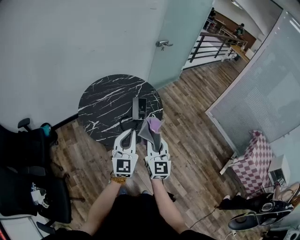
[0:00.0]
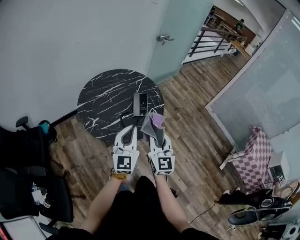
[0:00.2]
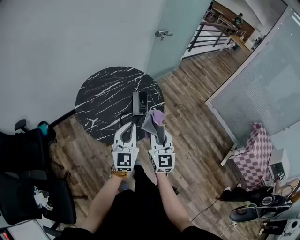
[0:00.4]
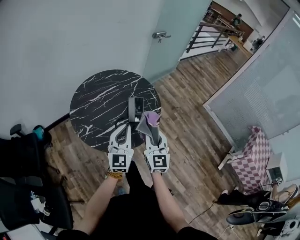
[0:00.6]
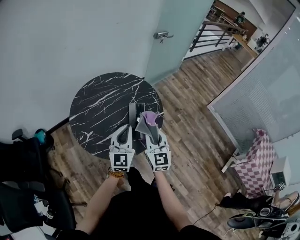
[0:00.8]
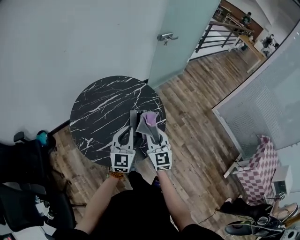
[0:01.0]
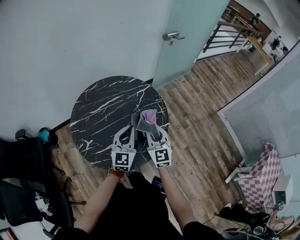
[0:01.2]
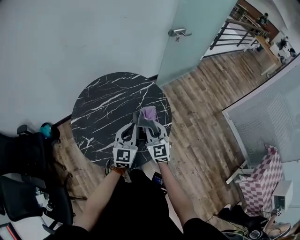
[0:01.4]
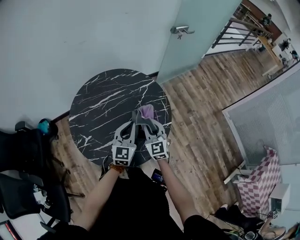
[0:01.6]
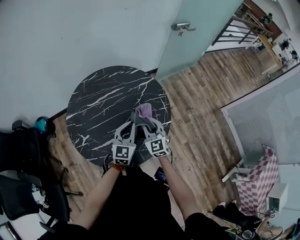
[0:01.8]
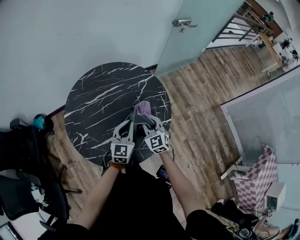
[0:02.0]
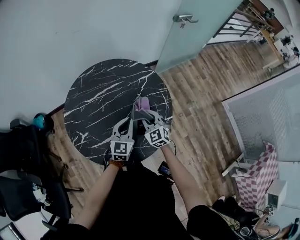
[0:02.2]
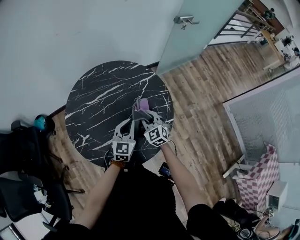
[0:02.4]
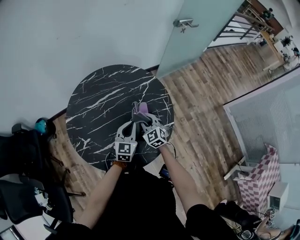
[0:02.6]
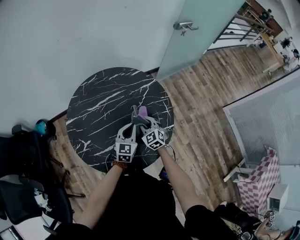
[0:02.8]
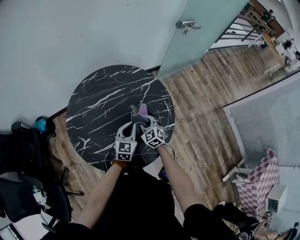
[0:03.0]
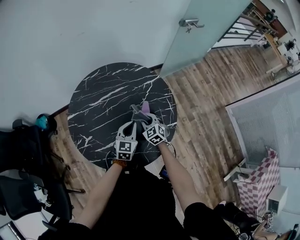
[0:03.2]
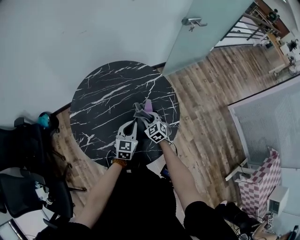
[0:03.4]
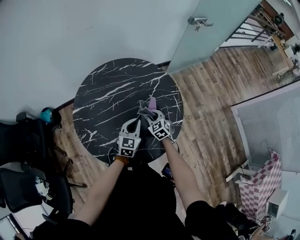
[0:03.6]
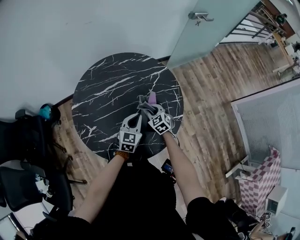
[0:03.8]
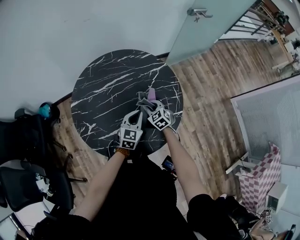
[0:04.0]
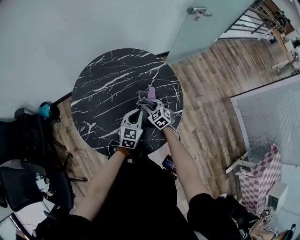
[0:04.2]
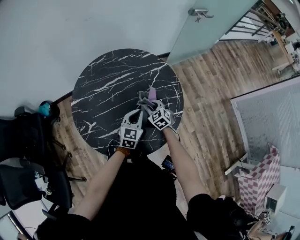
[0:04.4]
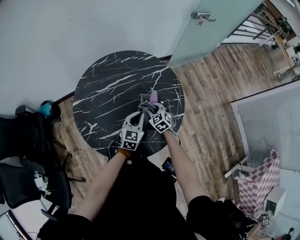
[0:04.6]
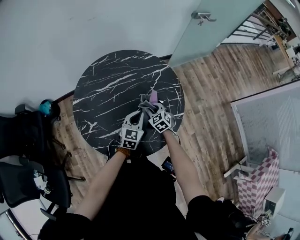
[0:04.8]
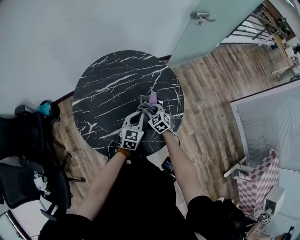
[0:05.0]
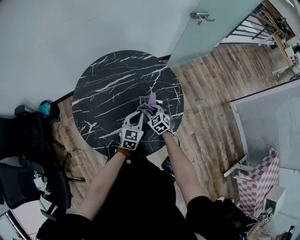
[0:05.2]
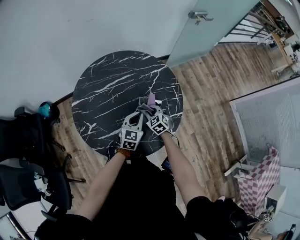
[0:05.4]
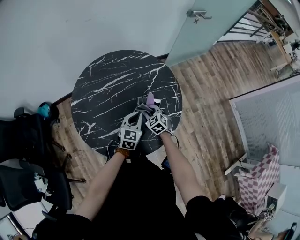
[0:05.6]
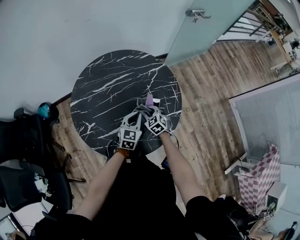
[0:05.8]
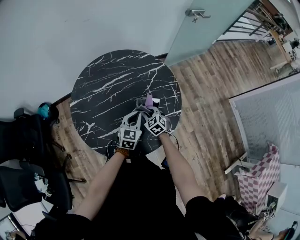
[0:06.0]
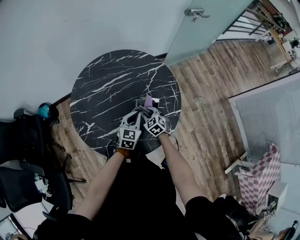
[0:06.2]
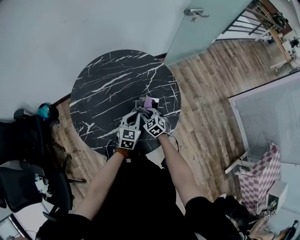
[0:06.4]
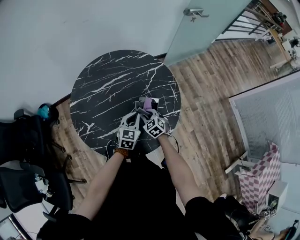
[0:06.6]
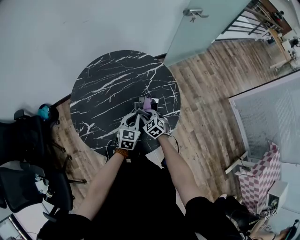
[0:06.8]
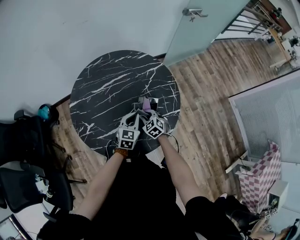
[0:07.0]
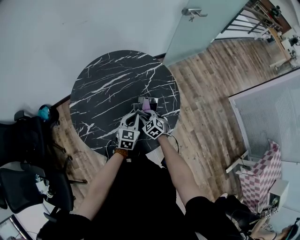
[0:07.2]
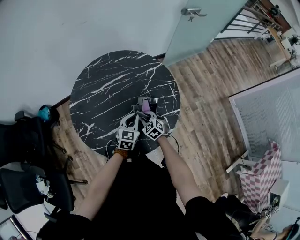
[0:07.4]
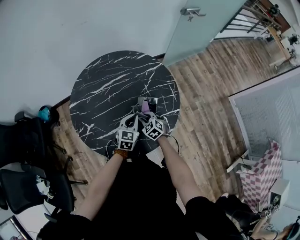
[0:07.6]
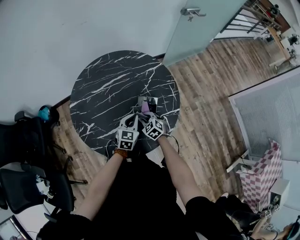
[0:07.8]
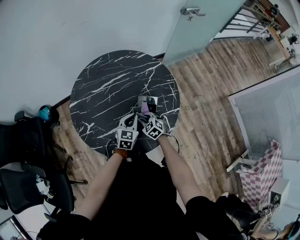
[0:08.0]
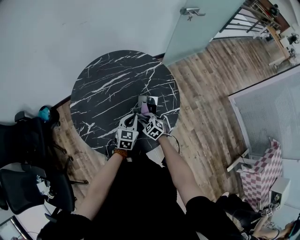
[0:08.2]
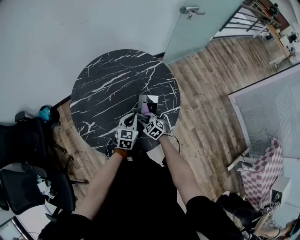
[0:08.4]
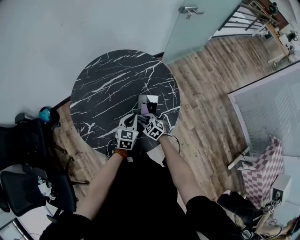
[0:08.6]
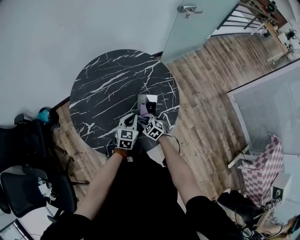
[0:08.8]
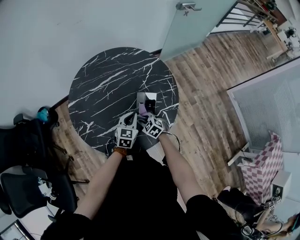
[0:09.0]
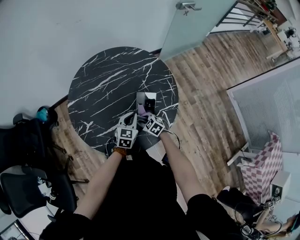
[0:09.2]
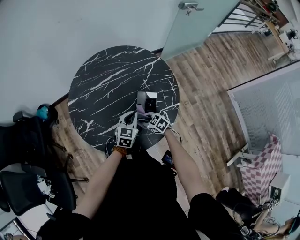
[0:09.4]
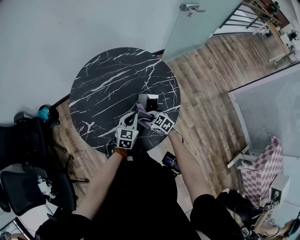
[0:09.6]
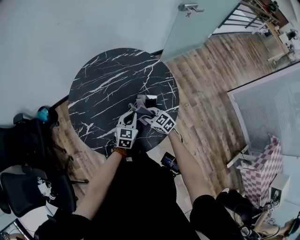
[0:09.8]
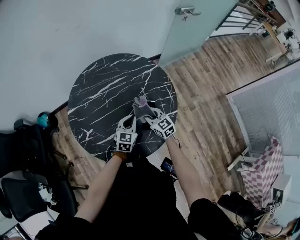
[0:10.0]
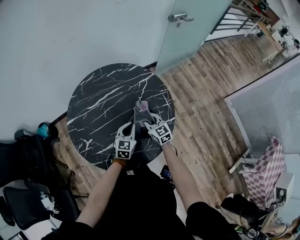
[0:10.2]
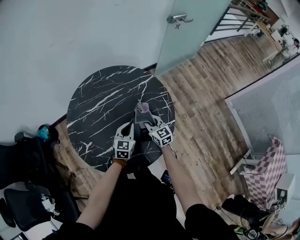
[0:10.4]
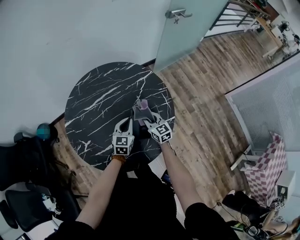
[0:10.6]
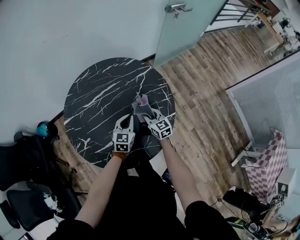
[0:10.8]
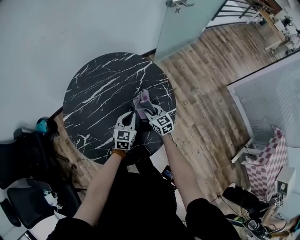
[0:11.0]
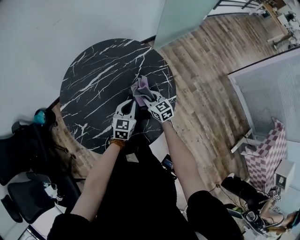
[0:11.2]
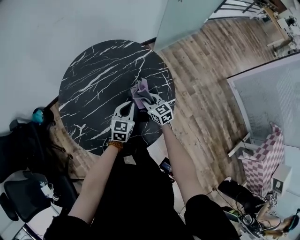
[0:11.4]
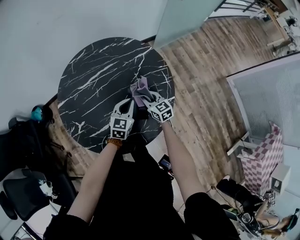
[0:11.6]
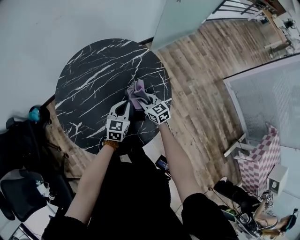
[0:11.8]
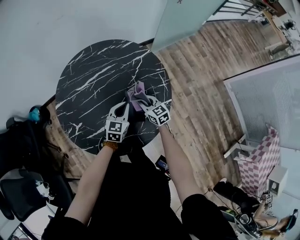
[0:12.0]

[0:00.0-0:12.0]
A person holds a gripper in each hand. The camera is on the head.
0:00.0 to 0:01.6: Both grippers move forward and downward, some 35 cm. The right gripper turns by about 30 degrees.
0:01.6 to 0:03.0: Both grippers move downward and forward, some 15 cm. The right gripper swivels about 20 degrees.
0:03.0 to 0:04.4: The grippers make only small movements.
0:04.4 to 0:06.0: There are only small adjustments of the grippers.
0:06.0 to 0:07.6: The grippers move only a little.
0:07.6 to 0:09.0: There are only small adjustments of the grippers.
0:09.0 to 0:10.4: The right gripper heads upward, forward and to the right, covering about 15 cm, and tips its fingers upward by about 40 degrees; the left gripper moves approximately 5 cm.
0:10.4 to 0:12.0: The right gripper is displaced downward by about 5 cm.

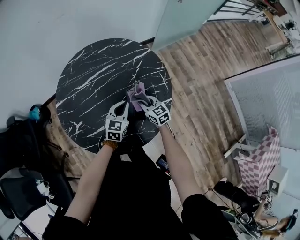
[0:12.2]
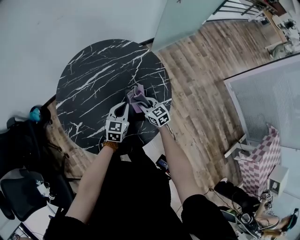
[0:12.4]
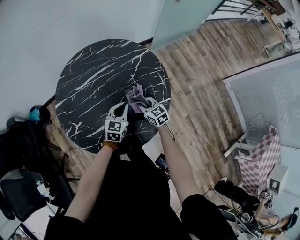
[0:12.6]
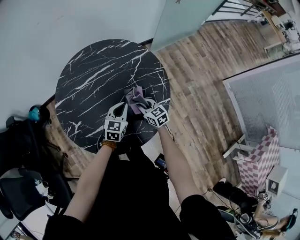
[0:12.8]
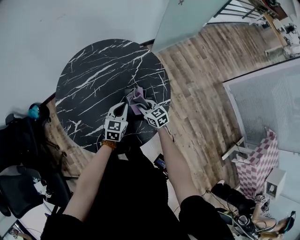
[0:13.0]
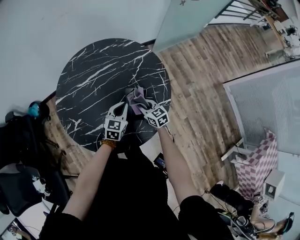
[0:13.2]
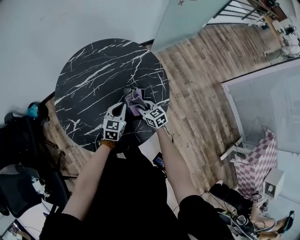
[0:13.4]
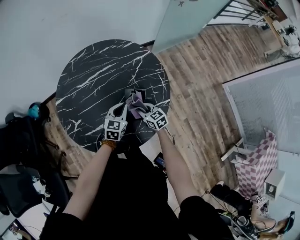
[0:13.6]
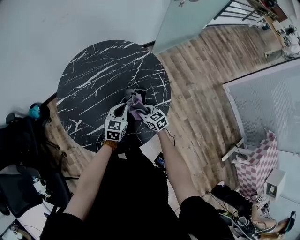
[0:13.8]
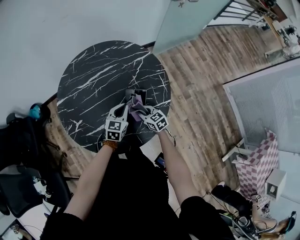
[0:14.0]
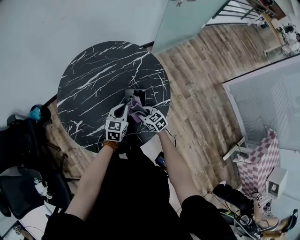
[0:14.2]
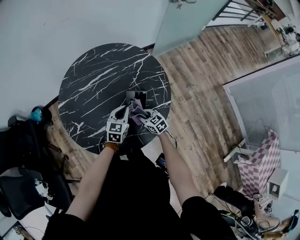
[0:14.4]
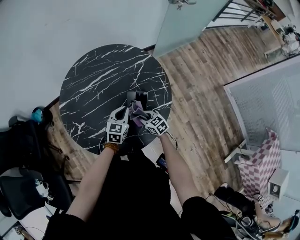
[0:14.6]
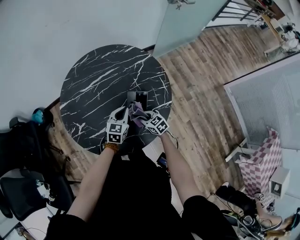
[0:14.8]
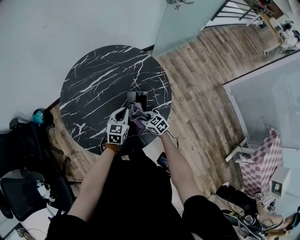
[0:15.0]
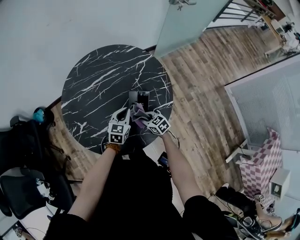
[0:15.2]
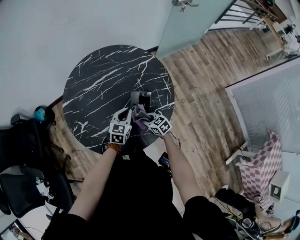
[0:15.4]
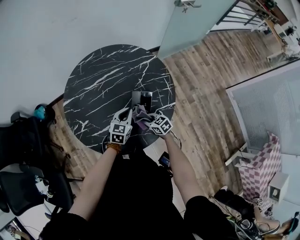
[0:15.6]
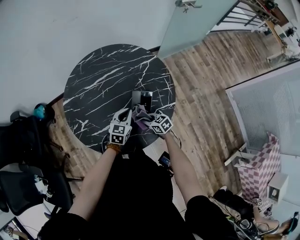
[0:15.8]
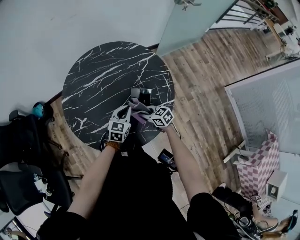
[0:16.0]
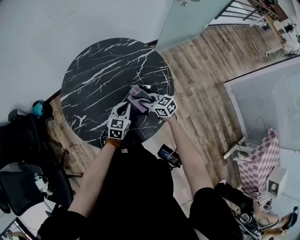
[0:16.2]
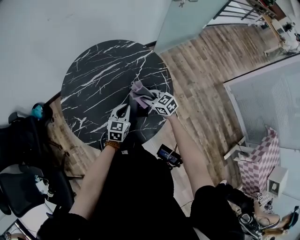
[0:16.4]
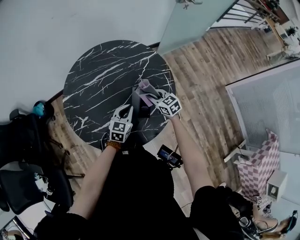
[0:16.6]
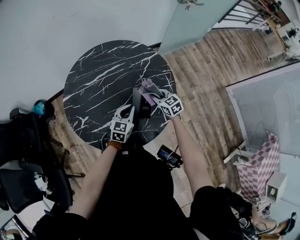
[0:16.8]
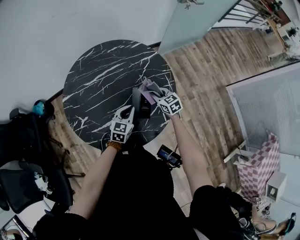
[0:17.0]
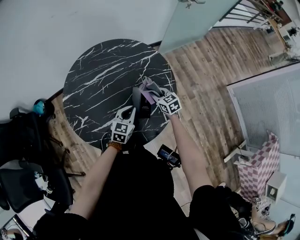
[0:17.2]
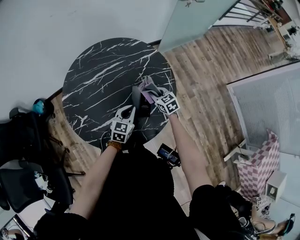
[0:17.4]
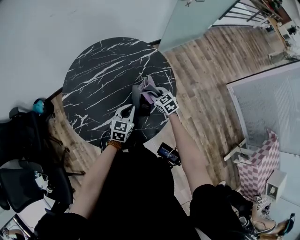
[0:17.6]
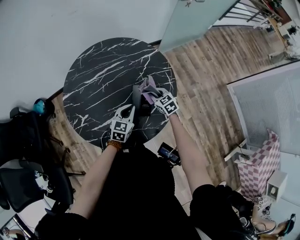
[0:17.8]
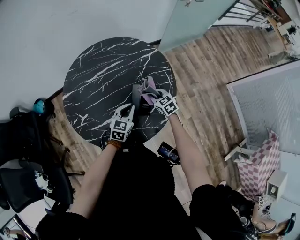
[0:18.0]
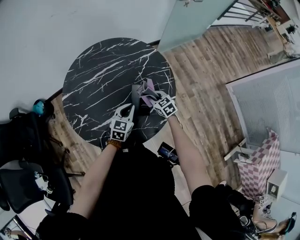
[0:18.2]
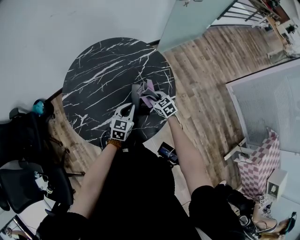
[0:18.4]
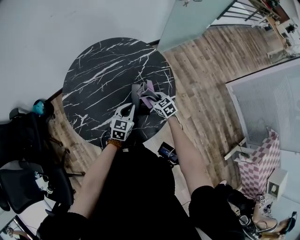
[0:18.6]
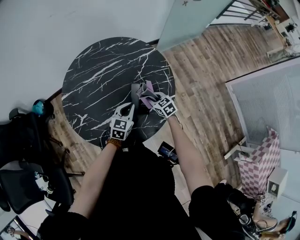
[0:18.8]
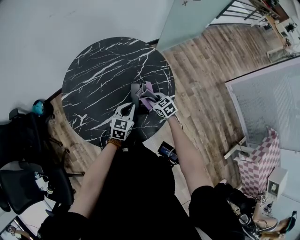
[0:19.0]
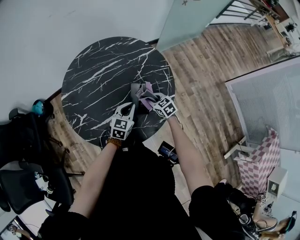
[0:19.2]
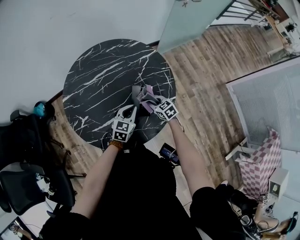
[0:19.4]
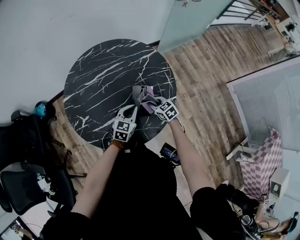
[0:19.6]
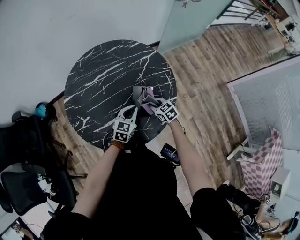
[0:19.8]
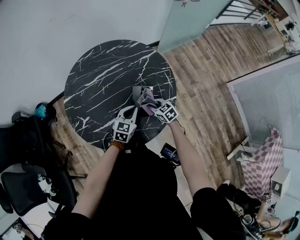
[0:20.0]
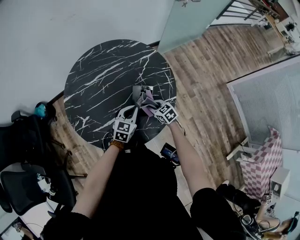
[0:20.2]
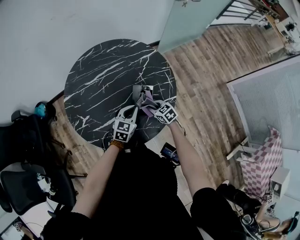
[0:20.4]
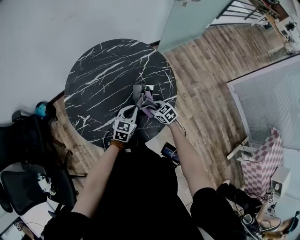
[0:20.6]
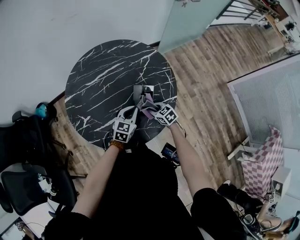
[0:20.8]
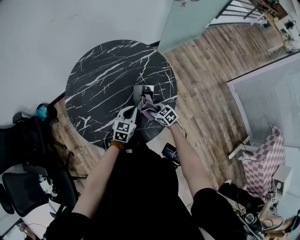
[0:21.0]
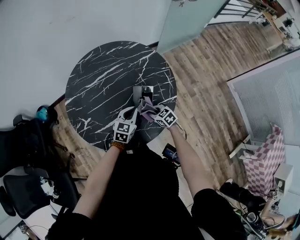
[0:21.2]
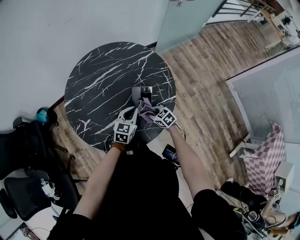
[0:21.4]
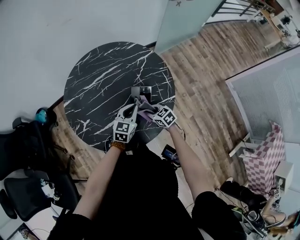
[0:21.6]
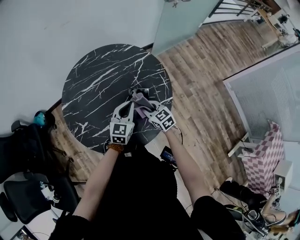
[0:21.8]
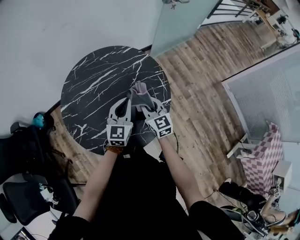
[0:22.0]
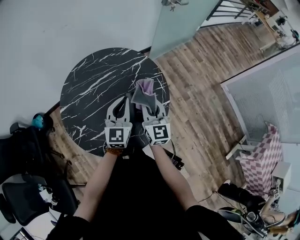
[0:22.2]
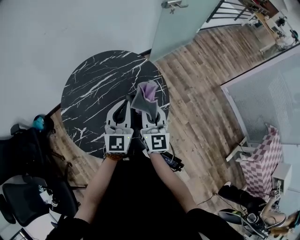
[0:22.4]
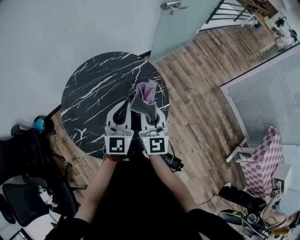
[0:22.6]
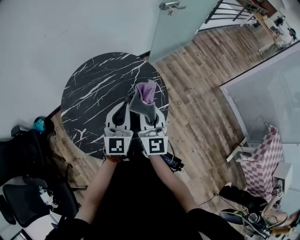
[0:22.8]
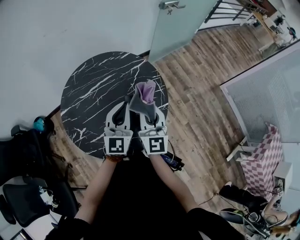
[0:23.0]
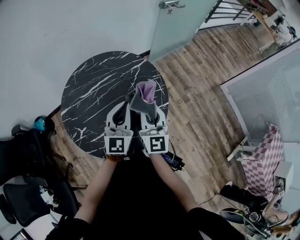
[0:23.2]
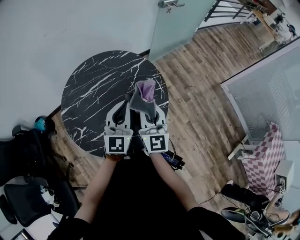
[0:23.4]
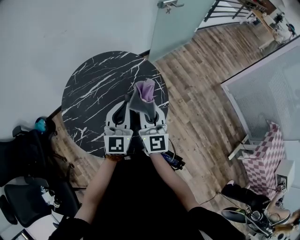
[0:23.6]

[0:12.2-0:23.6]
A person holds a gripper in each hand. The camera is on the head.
0:12.2 to 0:13.6: The grippers make only small movements.
0:13.6 to 0:15.0: The right gripper shifts by about 5 cm.
0:15.0 to 0:16.4: The right gripper is displaced upward and forward by some 10 cm.
0:16.4 to 0:17.8: The right gripper changes place by about 5 cm.
0:17.8 to 0:19.4: The right gripper ends up some 5 cm from where it was.
0:19.4 to 0:20.8: The right gripper shifts by about 5 cm.
0:20.8 to 0:22.2: The left gripper travels upward by approximately 20 cm, and changes its angle by roughly 30 degrees, while the right gripper moves upward, about 25 cm, and tilts its fingers roughly 40 degrees upward.
0:22.2 to 0:23.6: The right gripper is displaced upward by about 5 cm. Meanwhile the left gripper shifts by roughly 5 cm.

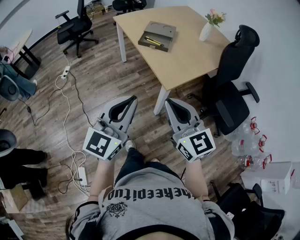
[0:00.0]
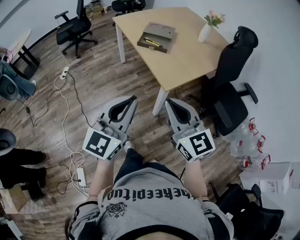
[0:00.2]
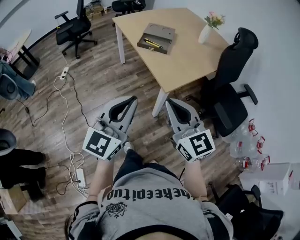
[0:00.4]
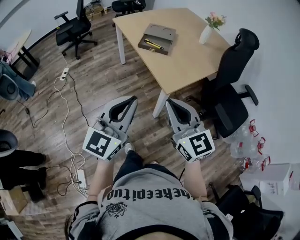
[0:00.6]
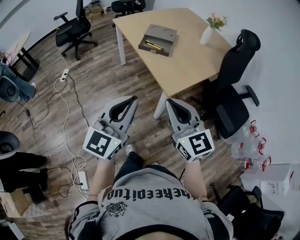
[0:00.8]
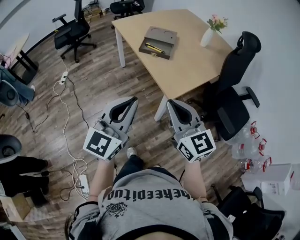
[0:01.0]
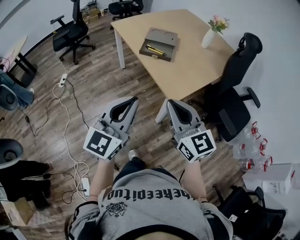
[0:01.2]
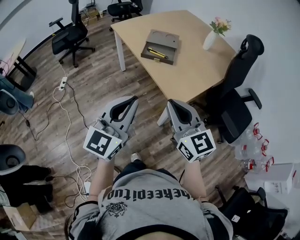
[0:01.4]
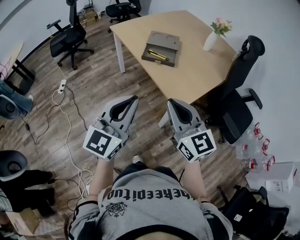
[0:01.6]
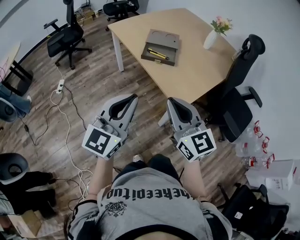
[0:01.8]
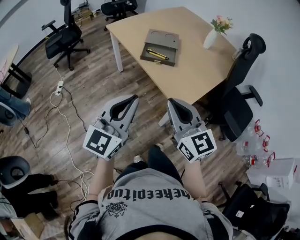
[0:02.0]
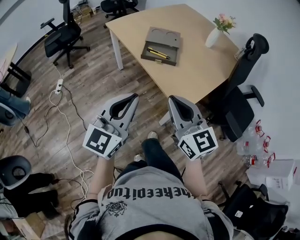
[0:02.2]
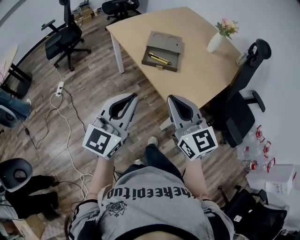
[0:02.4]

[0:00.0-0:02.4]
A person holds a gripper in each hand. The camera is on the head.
0:00.0 to 0:01.2: The grippers both shift forward by some 10 cm.
0:01.2 to 0:02.4: The two grippers go some 15 cm forward.
